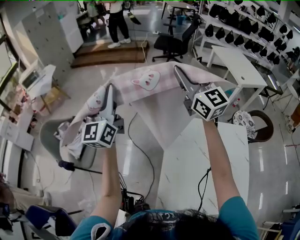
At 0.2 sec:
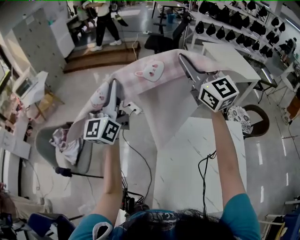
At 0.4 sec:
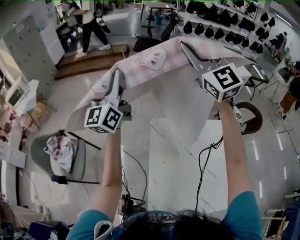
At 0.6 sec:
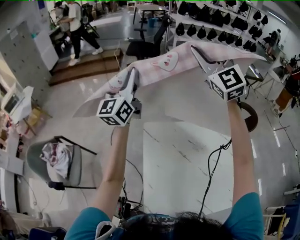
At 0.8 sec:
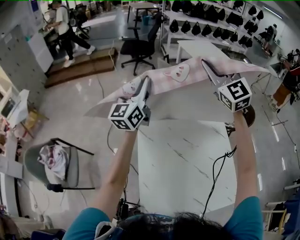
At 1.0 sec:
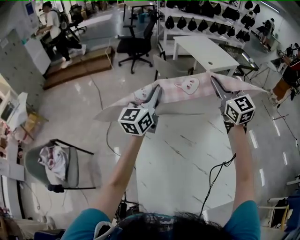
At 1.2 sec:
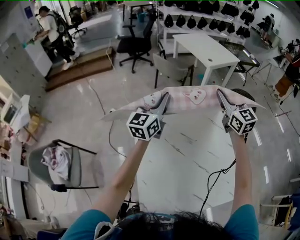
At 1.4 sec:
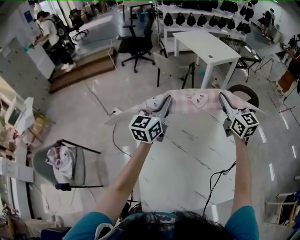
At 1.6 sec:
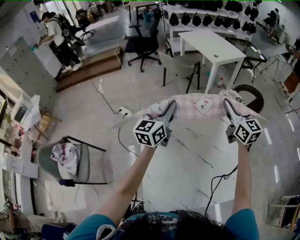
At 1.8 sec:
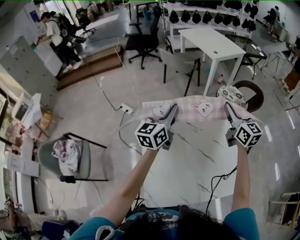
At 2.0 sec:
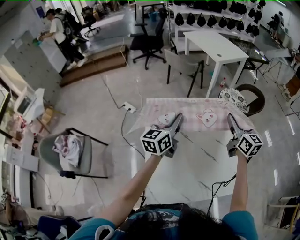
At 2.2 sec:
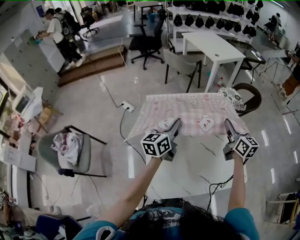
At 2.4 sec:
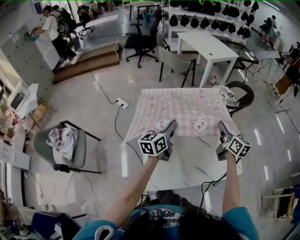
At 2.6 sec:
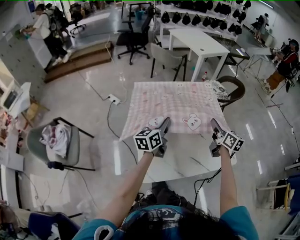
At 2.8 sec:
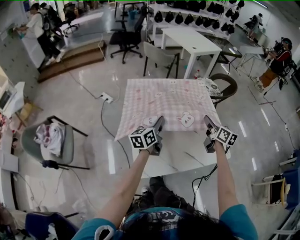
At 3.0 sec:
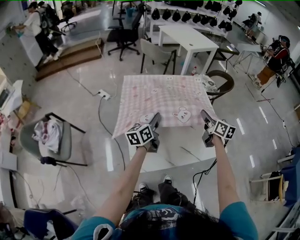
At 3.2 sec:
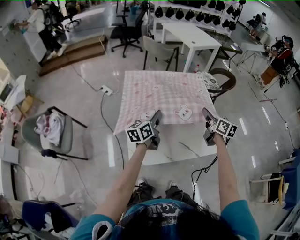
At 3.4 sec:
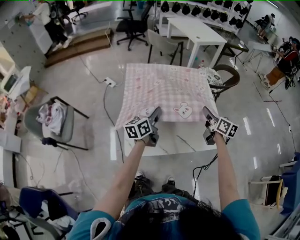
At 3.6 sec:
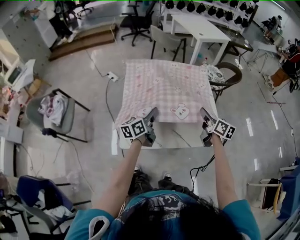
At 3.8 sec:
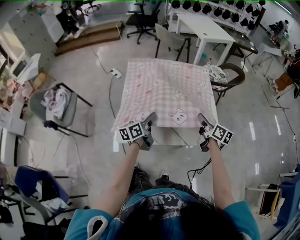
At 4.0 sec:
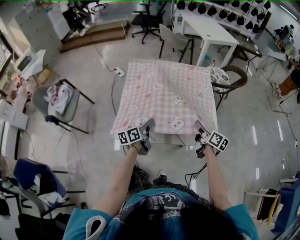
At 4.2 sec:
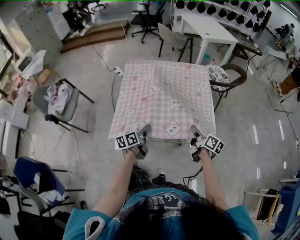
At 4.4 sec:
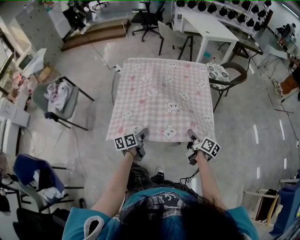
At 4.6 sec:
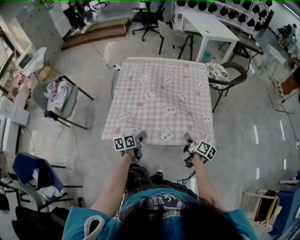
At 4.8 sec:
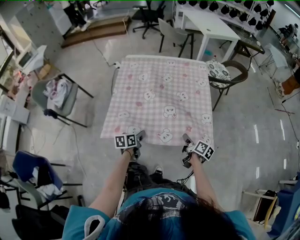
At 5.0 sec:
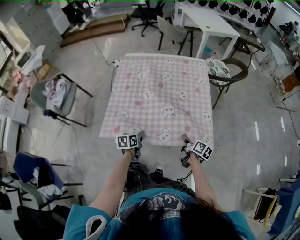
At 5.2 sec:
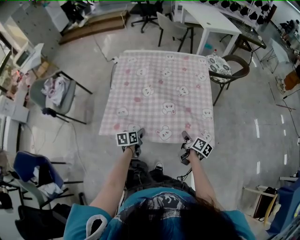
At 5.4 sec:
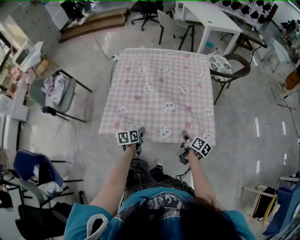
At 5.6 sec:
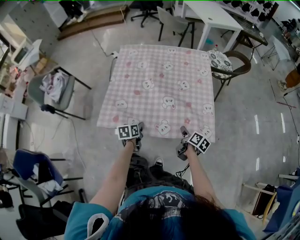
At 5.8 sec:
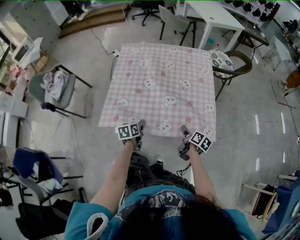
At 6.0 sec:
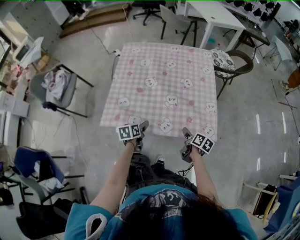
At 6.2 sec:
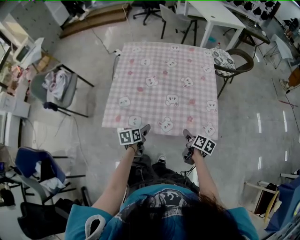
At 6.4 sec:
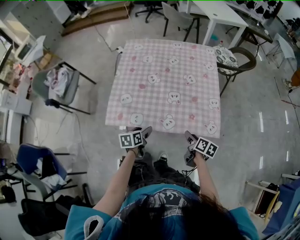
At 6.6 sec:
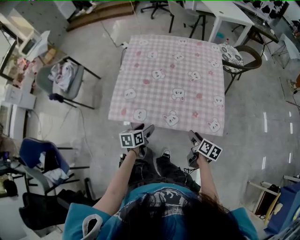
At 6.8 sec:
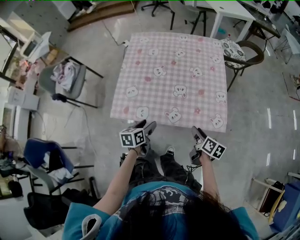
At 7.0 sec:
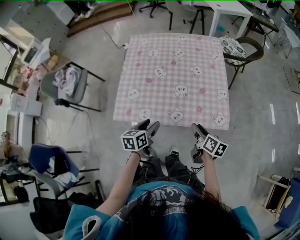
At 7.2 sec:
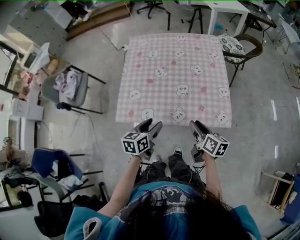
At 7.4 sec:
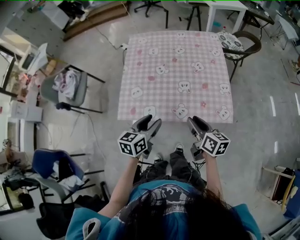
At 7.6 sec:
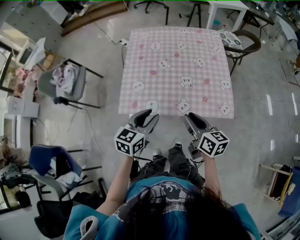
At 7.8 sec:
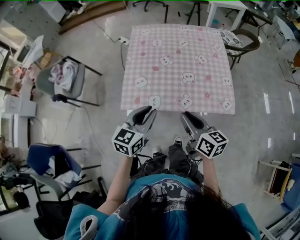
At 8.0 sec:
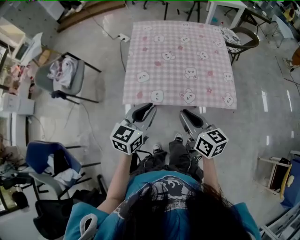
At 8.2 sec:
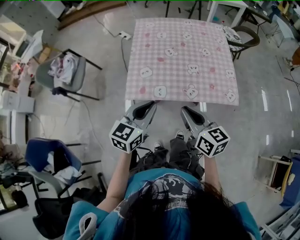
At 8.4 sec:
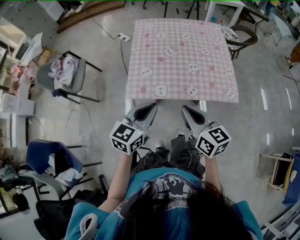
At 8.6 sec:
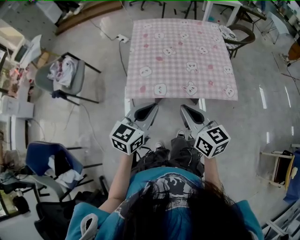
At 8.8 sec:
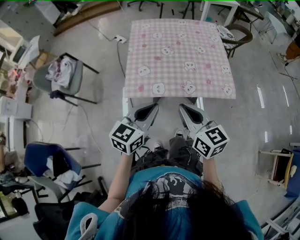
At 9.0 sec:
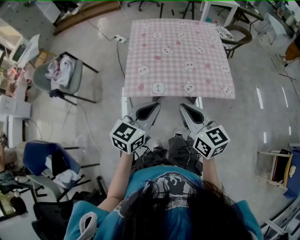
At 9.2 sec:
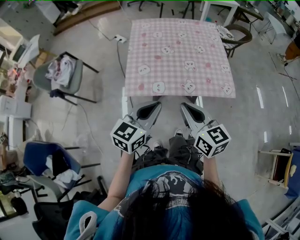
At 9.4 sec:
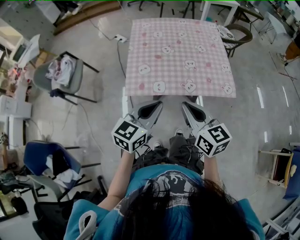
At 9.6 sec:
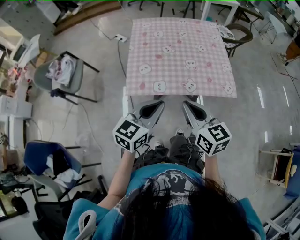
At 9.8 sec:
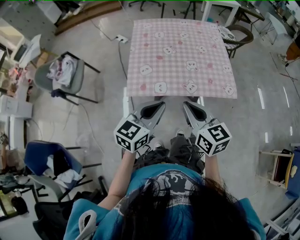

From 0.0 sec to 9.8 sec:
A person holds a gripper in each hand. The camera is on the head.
From 0.0 sec to 1.4 sec: The pair of grippers is taken approximately 40 cm. The right gripper turns by roughly 30 degrees. The left gripper changes its angle by about 40 degrees.
From 1.4 sec to 2.8 sec: The two grippers go roughly 30 cm backward and downward. The right gripper swivels approximately 40 degrees; the left gripper rotates about 30 degrees.
From 2.8 sec to 4.2 sec: Both grippers travel together backward, downward and to the right, some 25 cm. The right gripper rotates about 30 degrees. Meanwhile the left gripper turns by approximately 20 degrees.
From 4.2 sec to 5.6 sec: The two grippers go some 10 cm downward. The left gripper rotates some 30 degrees.
From 5.6 sec to 7.0 sec: Both grippers travel together upward and backward, some 10 cm. The right gripper opens its fingers, while the left gripper opens.
From 7.0 sec to 8.4 sec: The left gripper shifts some 20 cm upward, backward and to the left, turns by roughly 30 degrees, and closes its fingers. The right gripper moves to the left, upward and backward, roughly 25 cm, rotates some 40 degrees, and closes.
From 8.4 sec to 9.8 sec: The grippers stay close to where they were, moving slightly.

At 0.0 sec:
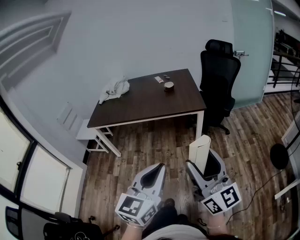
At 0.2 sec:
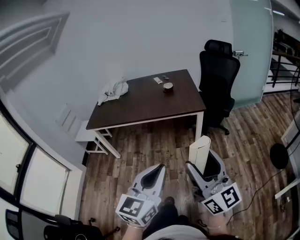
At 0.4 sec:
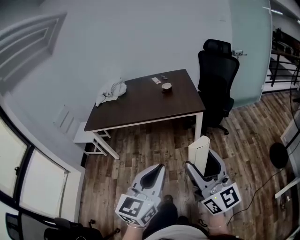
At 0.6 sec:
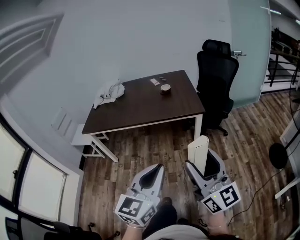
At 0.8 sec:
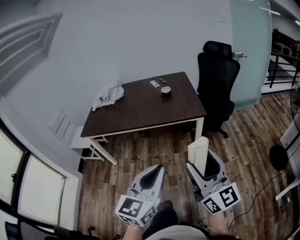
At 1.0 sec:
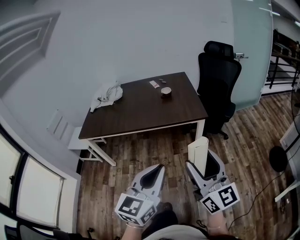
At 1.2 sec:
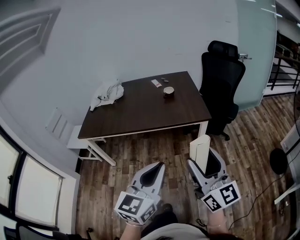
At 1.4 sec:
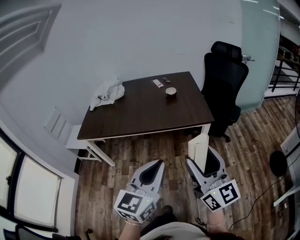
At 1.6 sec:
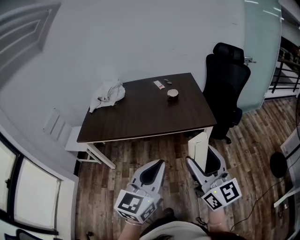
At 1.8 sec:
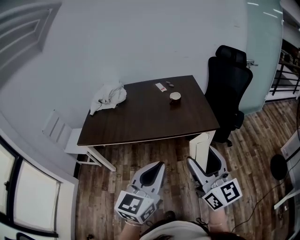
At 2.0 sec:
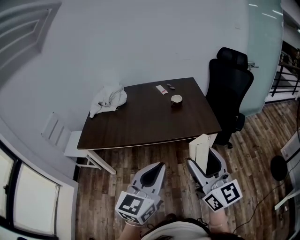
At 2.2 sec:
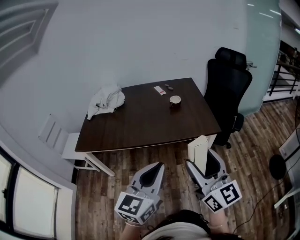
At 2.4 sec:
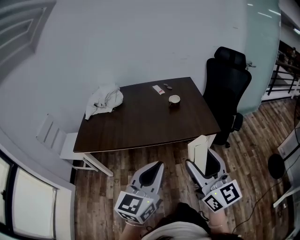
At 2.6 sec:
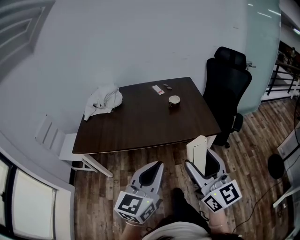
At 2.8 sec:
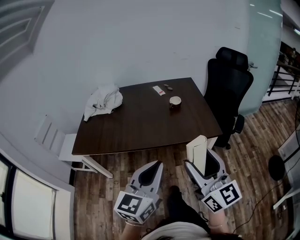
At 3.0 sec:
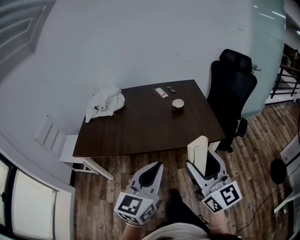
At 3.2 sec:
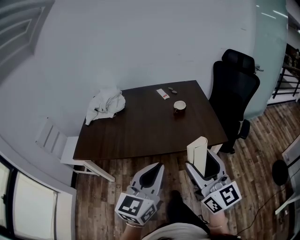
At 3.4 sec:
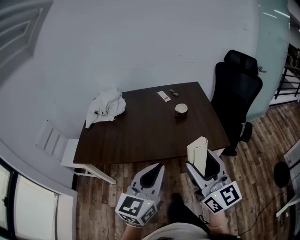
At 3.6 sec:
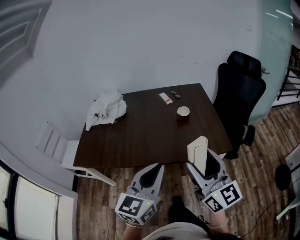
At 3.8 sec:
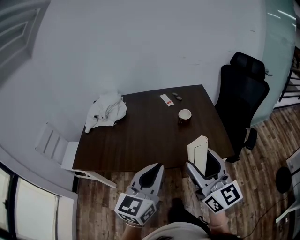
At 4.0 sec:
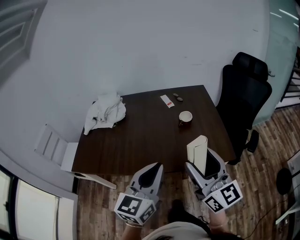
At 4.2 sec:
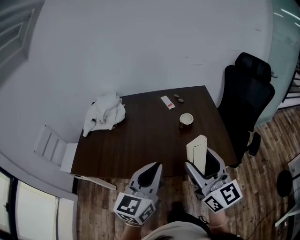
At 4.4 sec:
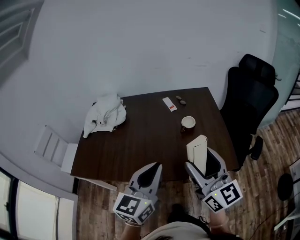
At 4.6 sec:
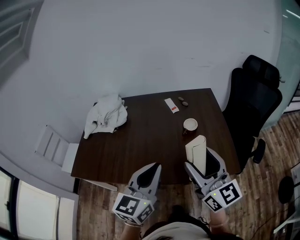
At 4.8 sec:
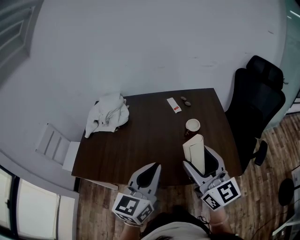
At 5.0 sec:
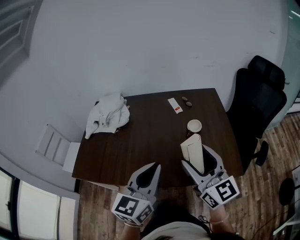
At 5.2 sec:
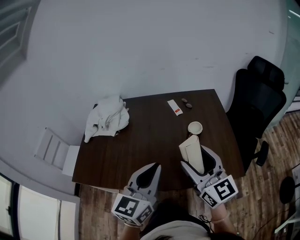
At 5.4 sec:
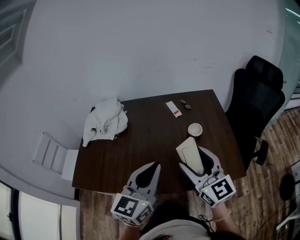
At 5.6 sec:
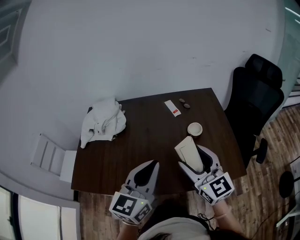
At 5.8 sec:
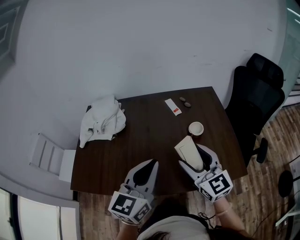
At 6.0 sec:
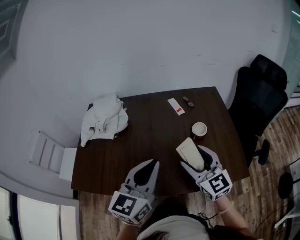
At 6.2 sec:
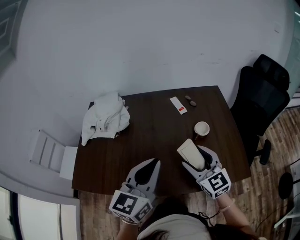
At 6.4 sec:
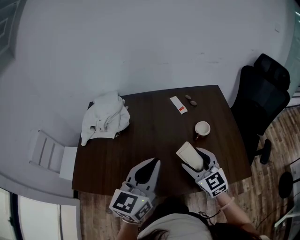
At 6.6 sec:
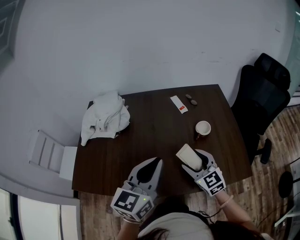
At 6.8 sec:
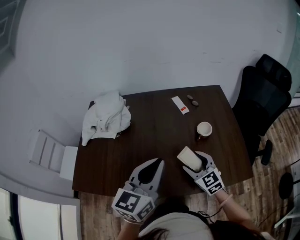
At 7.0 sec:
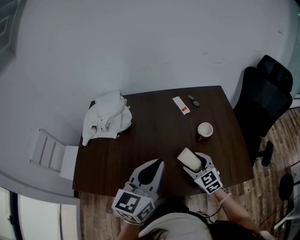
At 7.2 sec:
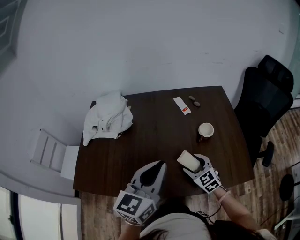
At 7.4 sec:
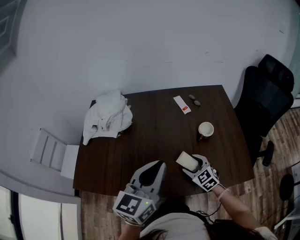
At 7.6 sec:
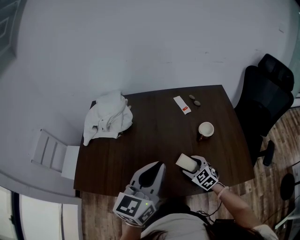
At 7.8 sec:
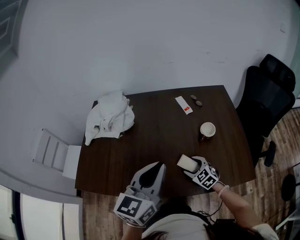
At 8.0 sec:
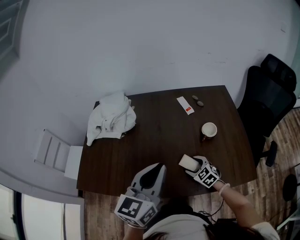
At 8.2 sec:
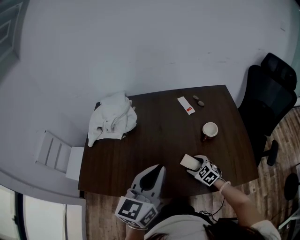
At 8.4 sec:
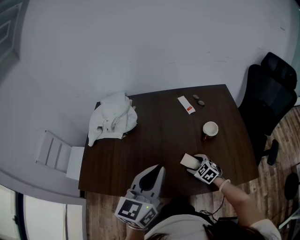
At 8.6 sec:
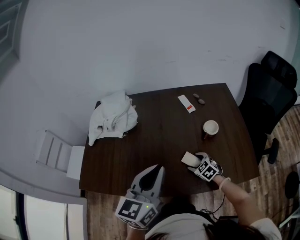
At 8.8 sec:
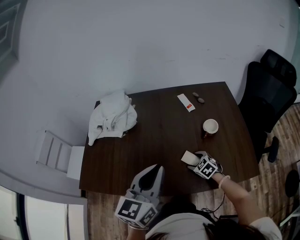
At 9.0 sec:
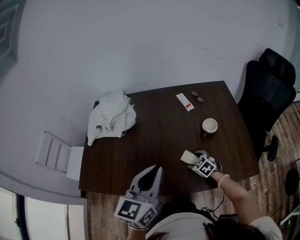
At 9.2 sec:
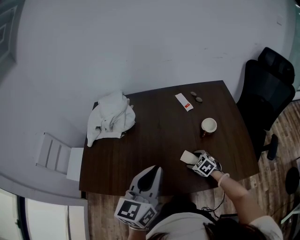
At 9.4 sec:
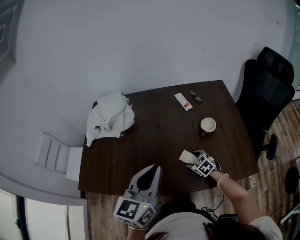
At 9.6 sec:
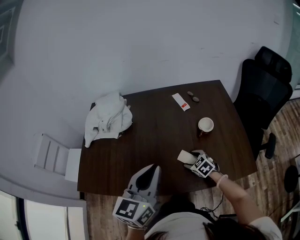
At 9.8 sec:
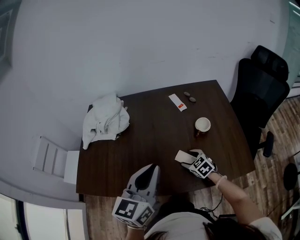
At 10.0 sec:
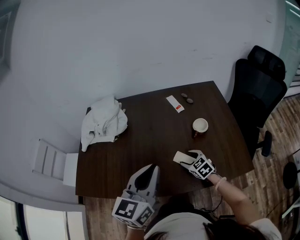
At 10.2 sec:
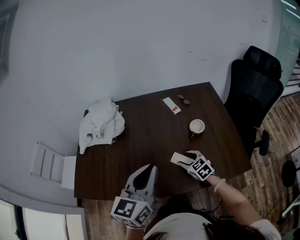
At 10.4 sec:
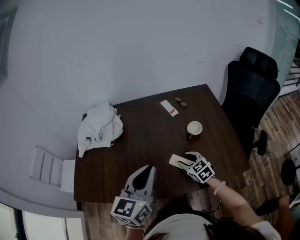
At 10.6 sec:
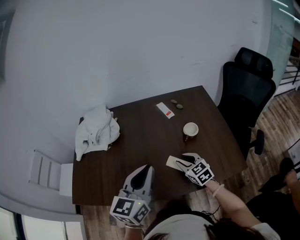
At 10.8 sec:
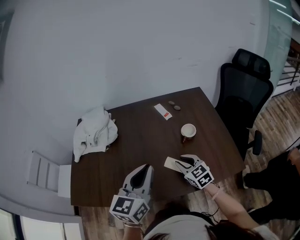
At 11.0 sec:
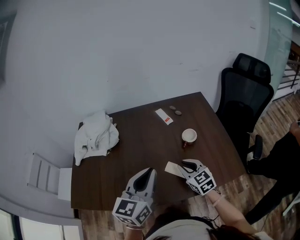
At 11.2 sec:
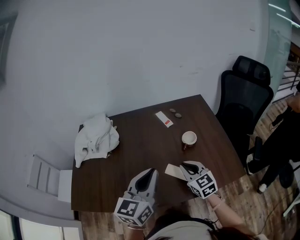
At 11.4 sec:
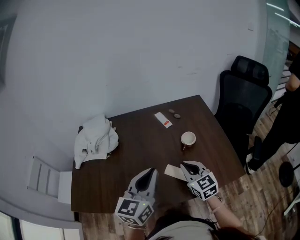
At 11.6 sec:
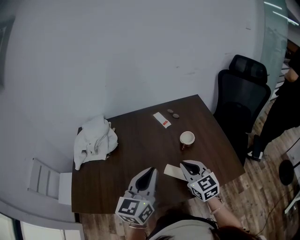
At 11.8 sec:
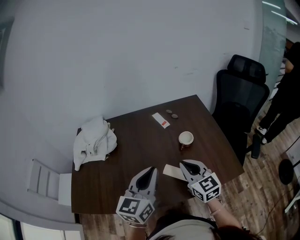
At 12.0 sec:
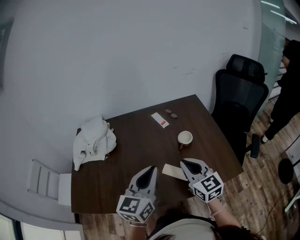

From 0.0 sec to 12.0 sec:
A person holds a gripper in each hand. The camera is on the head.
From 0.0 sec to 1.6 sec: The two grippers go some 30 cm forward and to the left.
From 1.6 sec to 3.0 sec: Both grippers travel together forward and to the left, roughly 15 cm.
From 3.0 sec to 4.4 sec: The two grippers go about 25 cm forward.
From 4.4 sec to 6.0 sec: The right gripper shifts about 20 cm forward, downward and to the left, and turns by about 20 degrees. Meanwhile the left gripper heads forward and to the left, covering approximately 15 cm.
From 6.0 sec to 7.6 sec: The right gripper goes some 25 cm downward, and changes its angle by roughly 30 degrees.
From 7.6 sec to 9.0 sec: The right gripper heads downward, covering roughly 5 cm.
From 9.0 sec to 10.4 sec: The right gripper goes about 10 cm upward, swivels some 20 degrees, and closes.
From 10.4 sec to 12.0 sec: The right gripper travels upward by roughly 20 cm, swivels roughly 30 degrees, and closes its fingers.

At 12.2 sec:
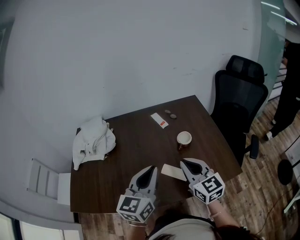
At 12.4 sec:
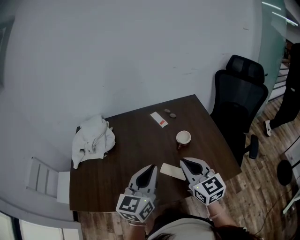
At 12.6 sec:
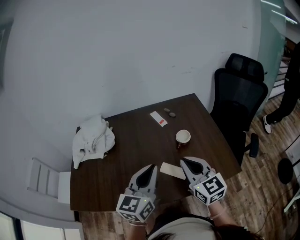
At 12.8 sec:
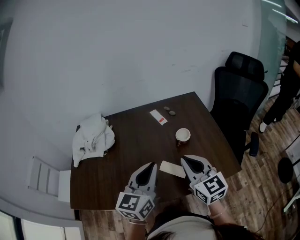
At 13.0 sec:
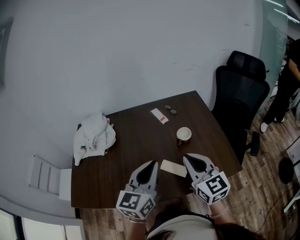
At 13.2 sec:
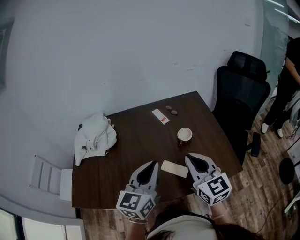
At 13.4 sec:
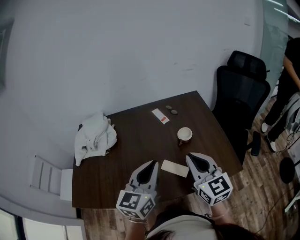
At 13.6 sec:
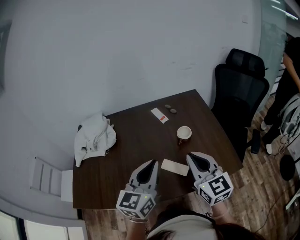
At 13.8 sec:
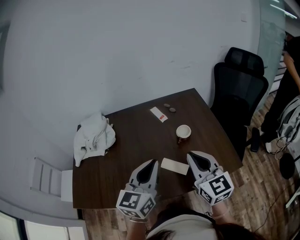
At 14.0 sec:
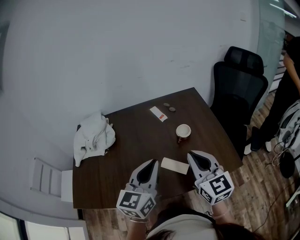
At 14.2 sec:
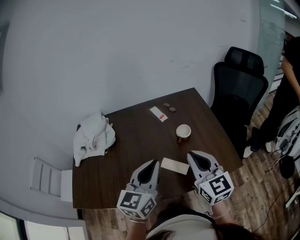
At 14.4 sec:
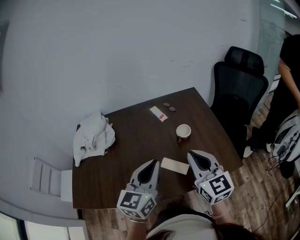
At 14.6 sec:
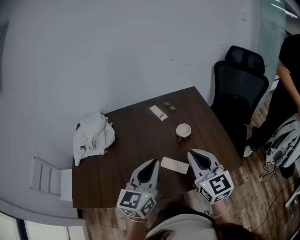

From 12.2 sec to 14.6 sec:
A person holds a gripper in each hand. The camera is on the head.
From 12.2 sec to 13.4 sec: The right gripper ends up roughly 5 cm from where it was.
From 13.4 sec to 14.6 sec: Both grippers stay about where they are.
